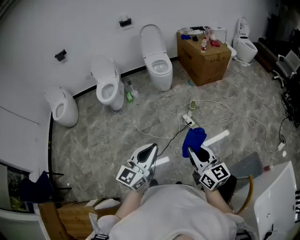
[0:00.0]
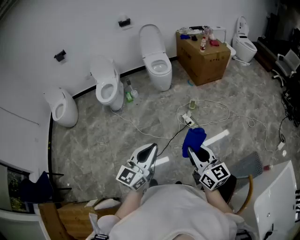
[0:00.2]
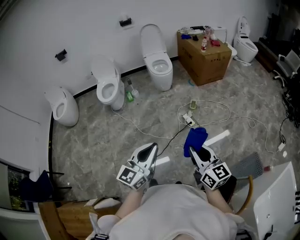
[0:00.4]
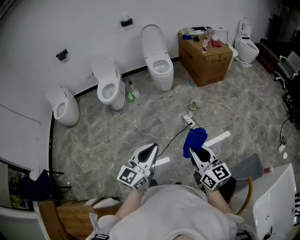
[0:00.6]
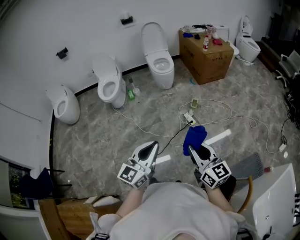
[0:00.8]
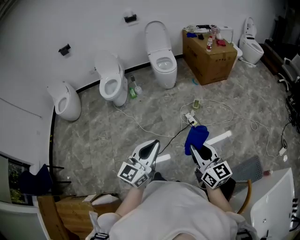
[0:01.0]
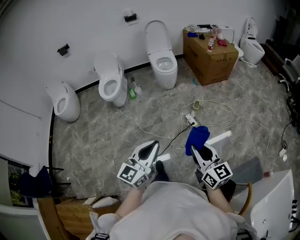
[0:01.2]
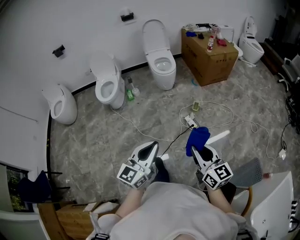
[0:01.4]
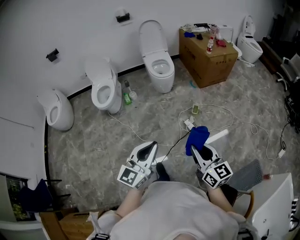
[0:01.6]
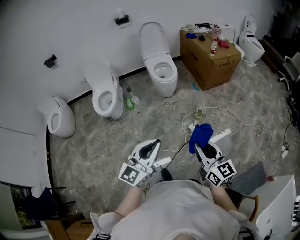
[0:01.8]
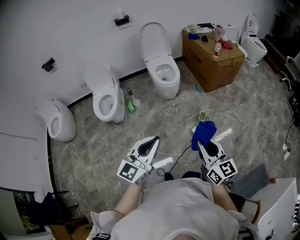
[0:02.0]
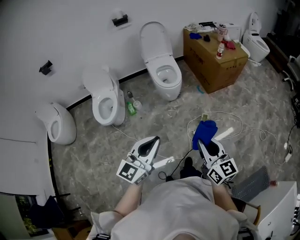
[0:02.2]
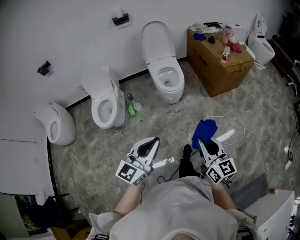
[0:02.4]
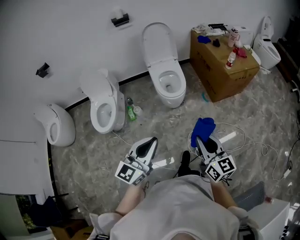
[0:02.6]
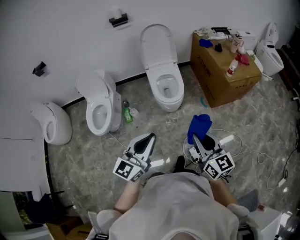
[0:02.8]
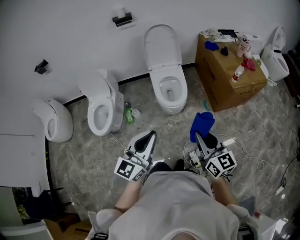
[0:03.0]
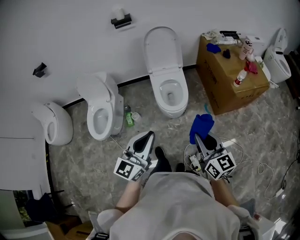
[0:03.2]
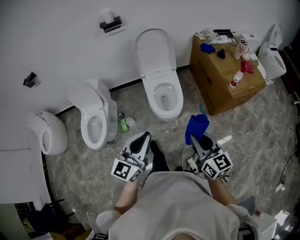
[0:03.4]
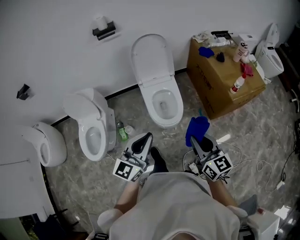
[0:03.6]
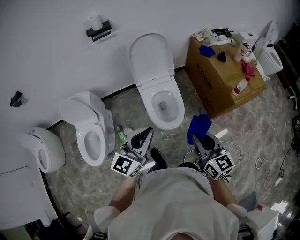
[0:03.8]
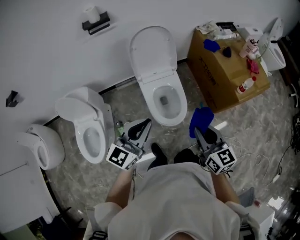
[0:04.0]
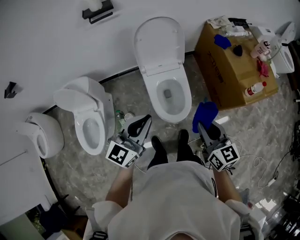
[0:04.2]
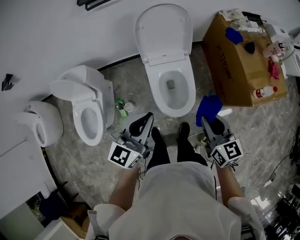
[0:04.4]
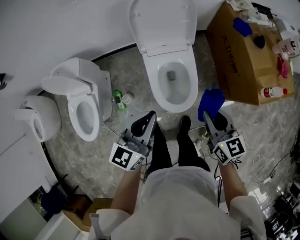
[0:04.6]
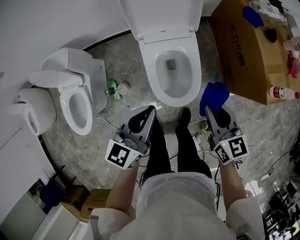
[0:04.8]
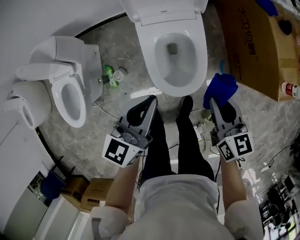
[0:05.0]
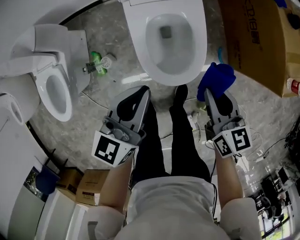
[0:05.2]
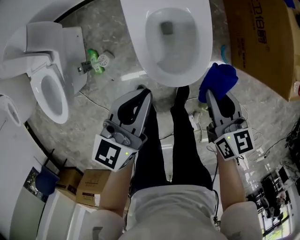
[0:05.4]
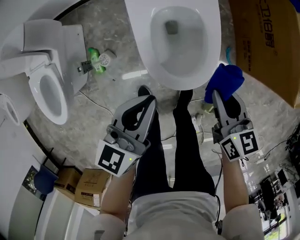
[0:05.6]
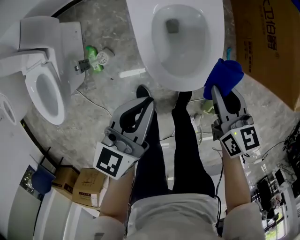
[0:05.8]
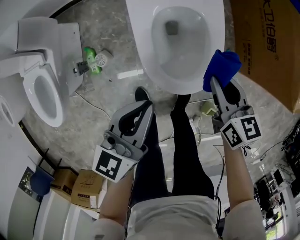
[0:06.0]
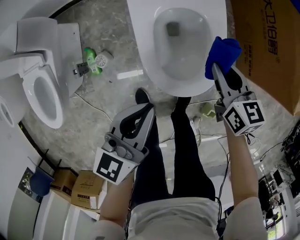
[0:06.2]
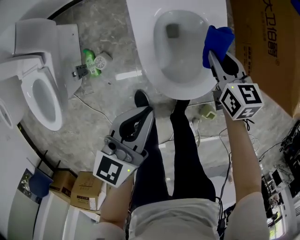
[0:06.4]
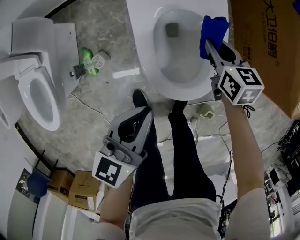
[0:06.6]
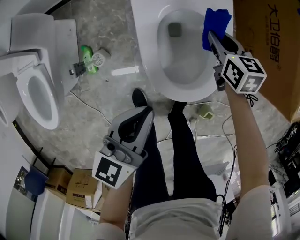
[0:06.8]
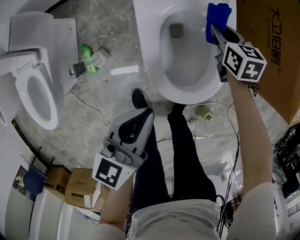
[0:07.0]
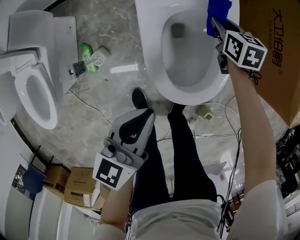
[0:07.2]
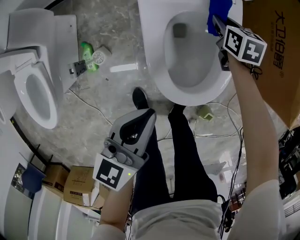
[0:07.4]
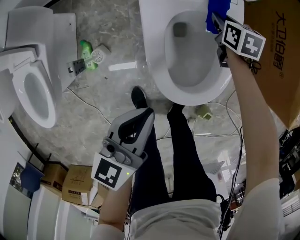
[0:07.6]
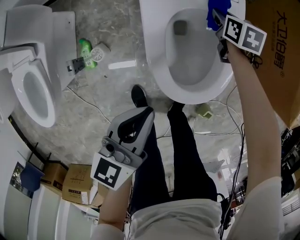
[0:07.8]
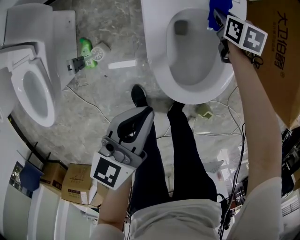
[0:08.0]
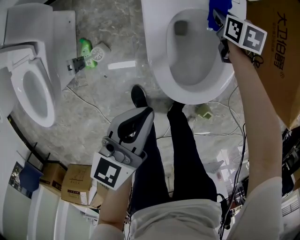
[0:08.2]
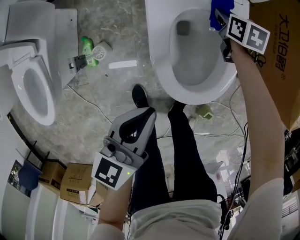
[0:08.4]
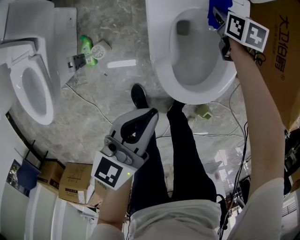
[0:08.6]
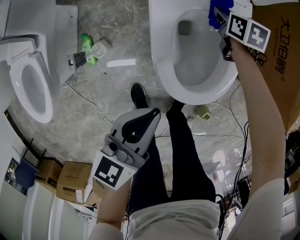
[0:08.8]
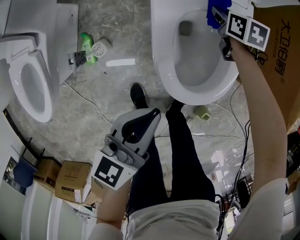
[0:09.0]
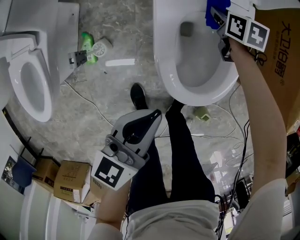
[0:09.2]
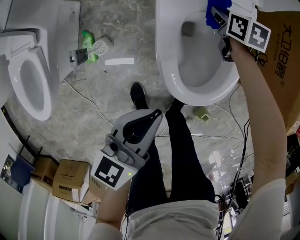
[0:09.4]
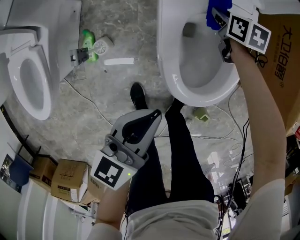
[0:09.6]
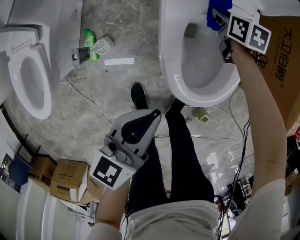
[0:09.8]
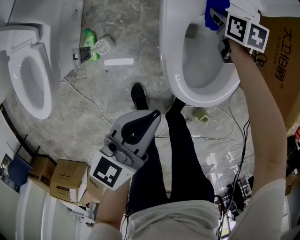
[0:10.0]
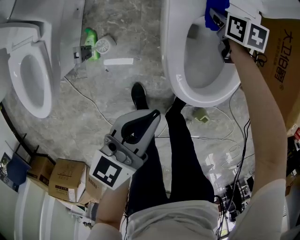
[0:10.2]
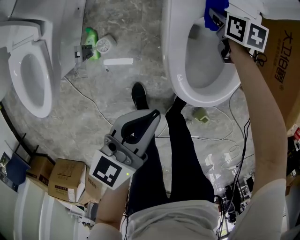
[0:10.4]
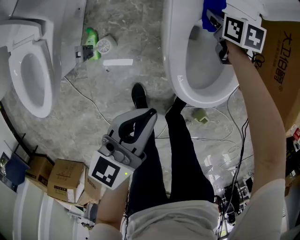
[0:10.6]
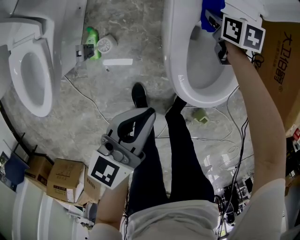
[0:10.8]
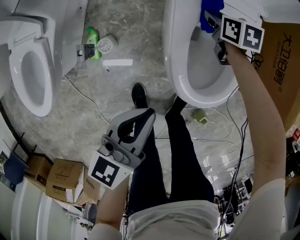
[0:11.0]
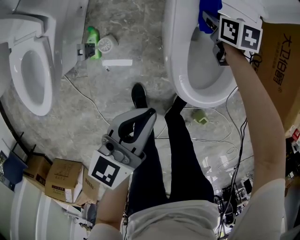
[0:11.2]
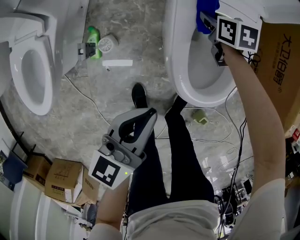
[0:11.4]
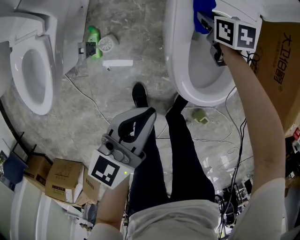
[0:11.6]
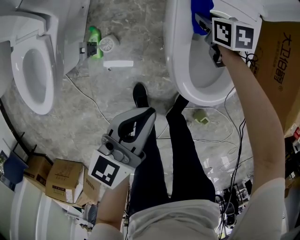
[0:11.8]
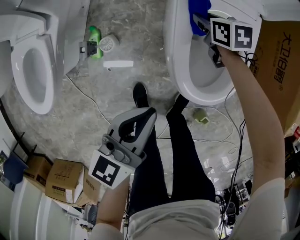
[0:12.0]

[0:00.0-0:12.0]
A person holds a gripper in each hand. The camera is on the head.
0:00.0 to 0:01.6: The two grippers go some 20 cm forward.
0:01.6 to 0:03.0: The pair of grippers is taken forward, approximately 60 cm.
0:03.0 to 0:04.4: The two grippers travel together, forward, approximately 40 cm.
0:04.4 to 0:06.0: The grippers both shift downward by about 35 cm. The left gripper turns by about 20 degrees.
0:06.0 to 0:07.6: The right gripper goes roughly 30 cm forward and downward; the left gripper changes place by about 5 cm.
0:07.6 to 0:09.0: There are only small adjustments of the grippers.
0:09.0 to 0:10.4: The right gripper moves to the left, about 5 cm.
0:10.4 to 0:12.0: The right gripper heads to the left, covering roughly 5 cm.

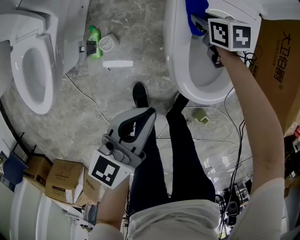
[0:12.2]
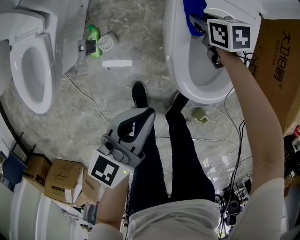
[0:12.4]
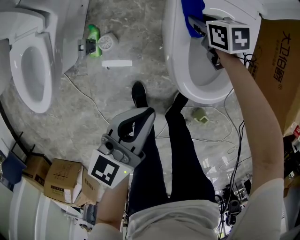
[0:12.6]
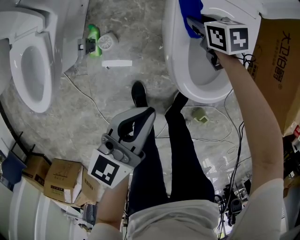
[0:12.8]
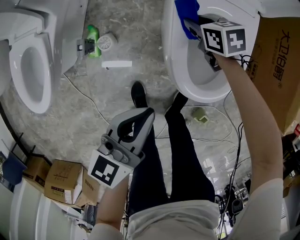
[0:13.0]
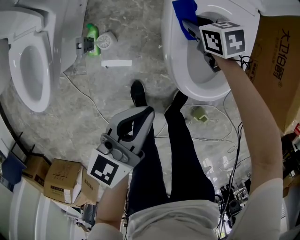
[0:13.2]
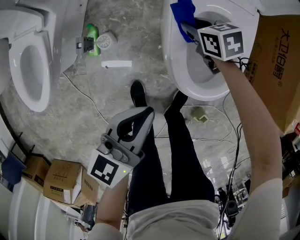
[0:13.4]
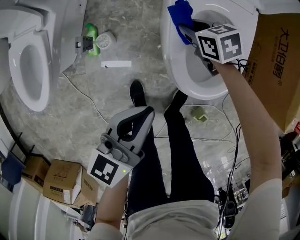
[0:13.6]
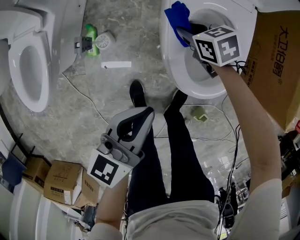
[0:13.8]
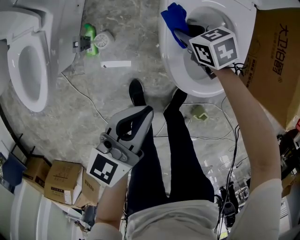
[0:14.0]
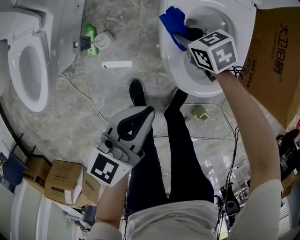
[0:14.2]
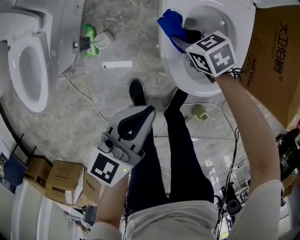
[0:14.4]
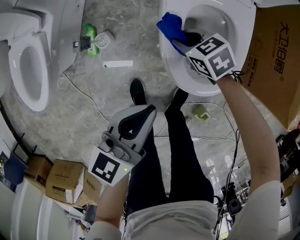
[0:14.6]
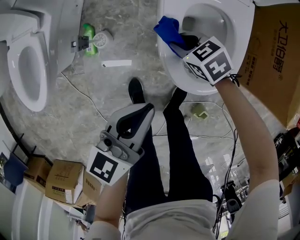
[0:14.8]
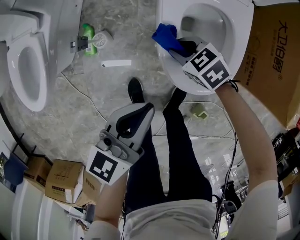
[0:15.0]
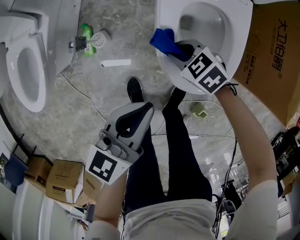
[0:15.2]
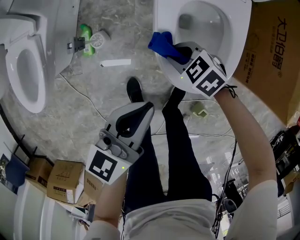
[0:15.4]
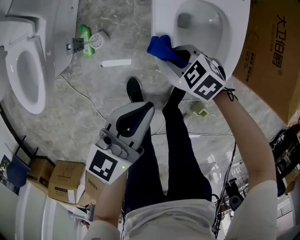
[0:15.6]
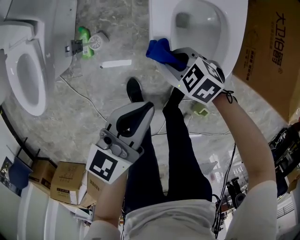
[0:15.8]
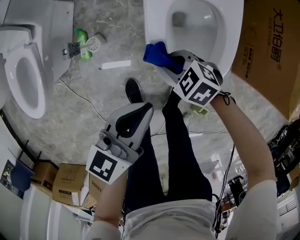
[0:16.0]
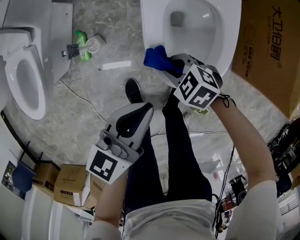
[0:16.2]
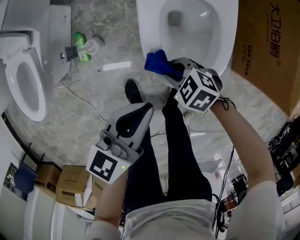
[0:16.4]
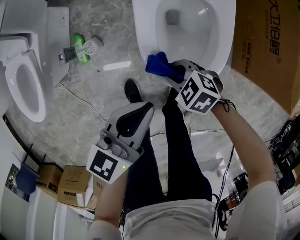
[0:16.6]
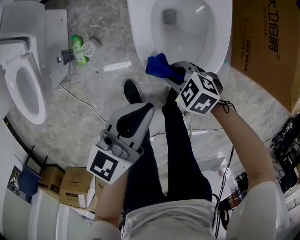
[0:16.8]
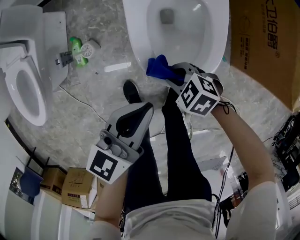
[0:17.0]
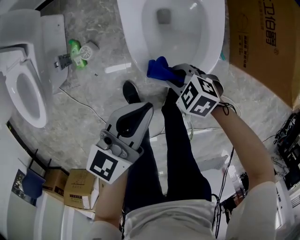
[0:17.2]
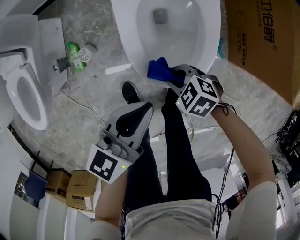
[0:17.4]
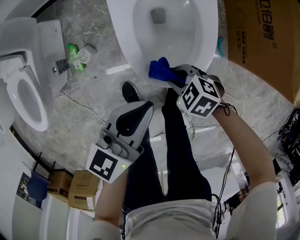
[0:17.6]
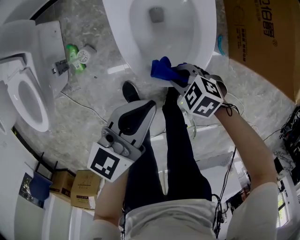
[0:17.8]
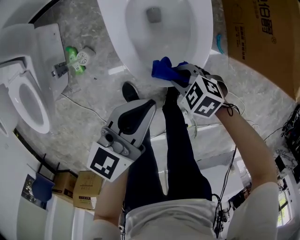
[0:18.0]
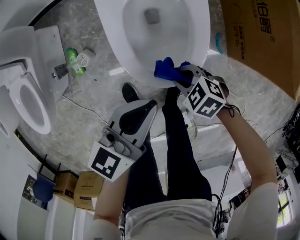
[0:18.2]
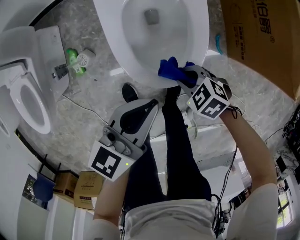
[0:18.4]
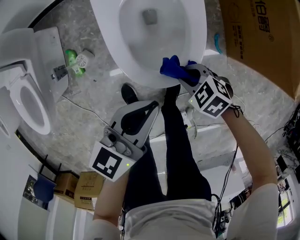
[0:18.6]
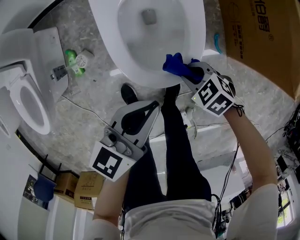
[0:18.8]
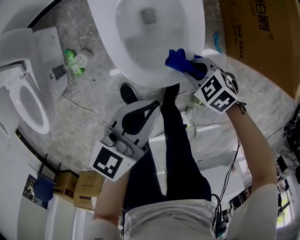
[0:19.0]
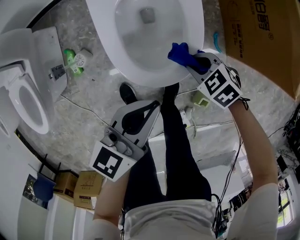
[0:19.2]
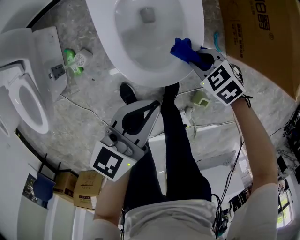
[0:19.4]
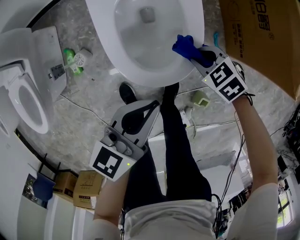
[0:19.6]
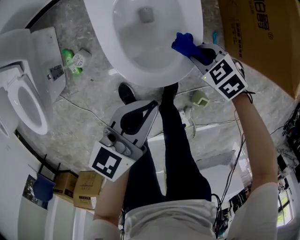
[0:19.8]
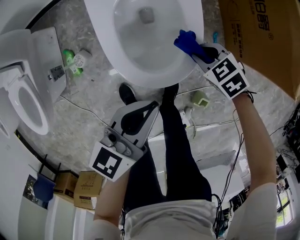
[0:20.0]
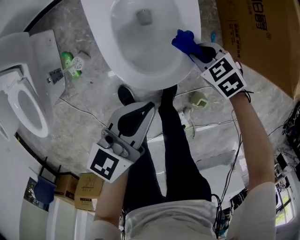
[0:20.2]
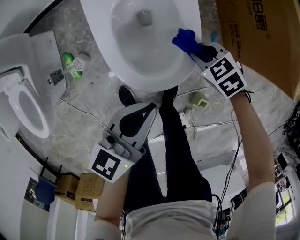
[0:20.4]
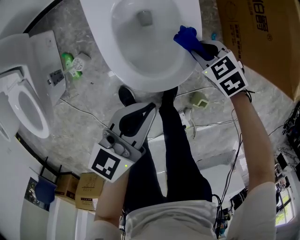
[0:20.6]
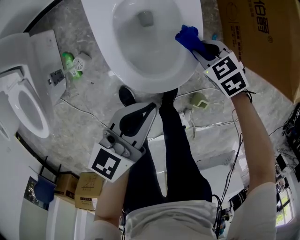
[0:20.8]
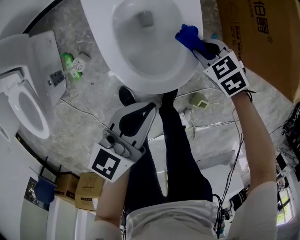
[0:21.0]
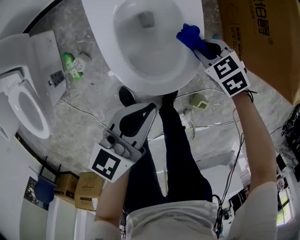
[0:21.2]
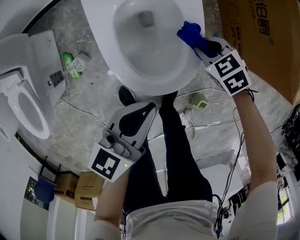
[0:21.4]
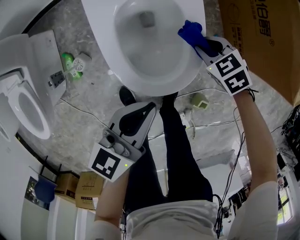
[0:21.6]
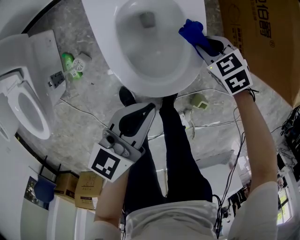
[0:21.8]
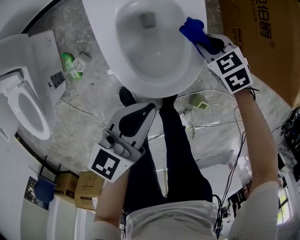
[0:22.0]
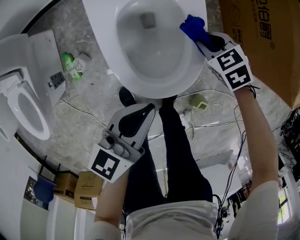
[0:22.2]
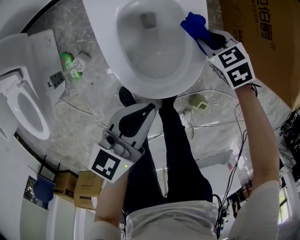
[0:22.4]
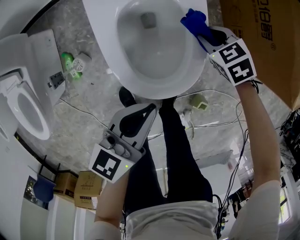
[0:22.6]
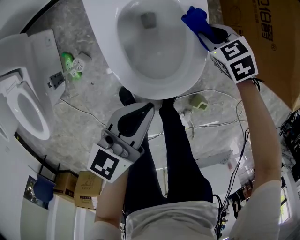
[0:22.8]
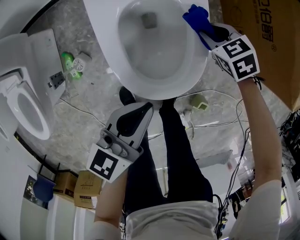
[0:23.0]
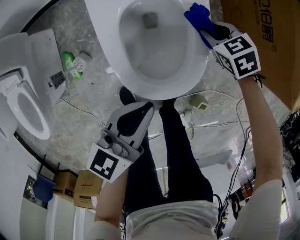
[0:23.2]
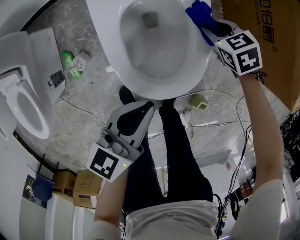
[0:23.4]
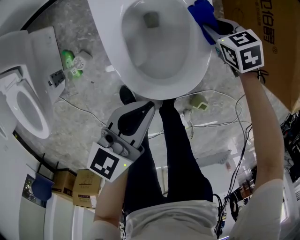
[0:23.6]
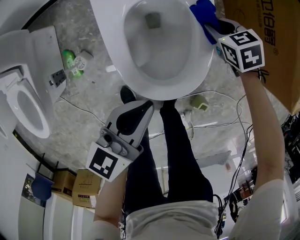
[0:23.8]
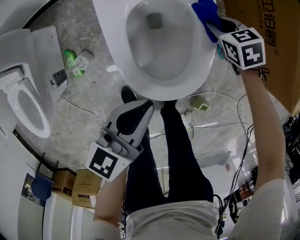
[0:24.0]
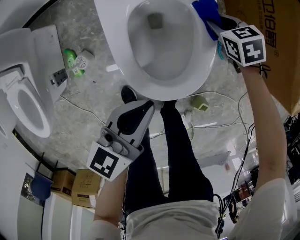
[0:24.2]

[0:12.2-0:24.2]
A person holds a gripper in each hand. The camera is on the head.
0:12.2 to 0:13.8: The right gripper travels backward by roughly 10 cm.
0:13.8 to 0:15.2: The right gripper moves backward, roughly 10 cm, and rotates approximately 20 degrees.
0:15.2 to 0:16.6: The left gripper changes place by some 5 cm; the right gripper ends up some 10 cm from where it was.
0:16.6 to 0:18.2: The right gripper changes place by approximately 10 cm. The left gripper changes place by approximately 10 cm.
0:18.2 to 0:19.8: The right gripper moves roughly 10 cm.
0:19.8 to 0:21.2: The right gripper goes about 5 cm forward.
0:21.2 to 0:22.6: The right gripper heads forward, covering some 5 cm.
0:22.6 to 0:24.2: The right gripper is displaced forward by approximately 5 cm.
